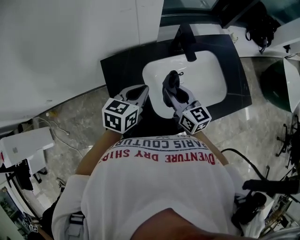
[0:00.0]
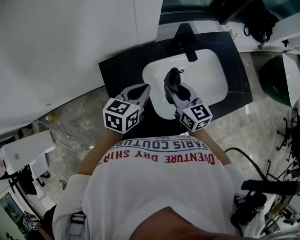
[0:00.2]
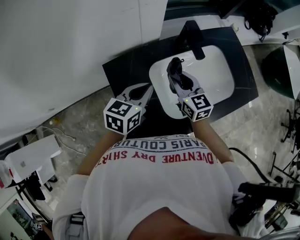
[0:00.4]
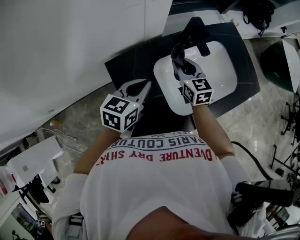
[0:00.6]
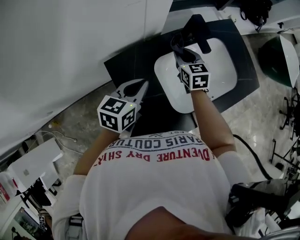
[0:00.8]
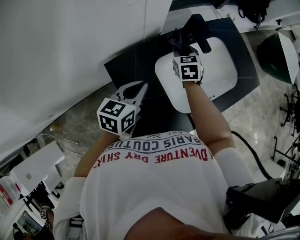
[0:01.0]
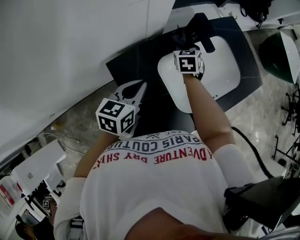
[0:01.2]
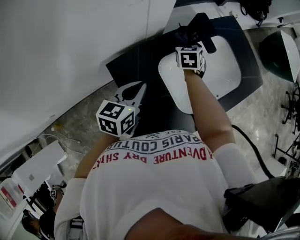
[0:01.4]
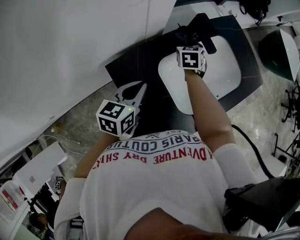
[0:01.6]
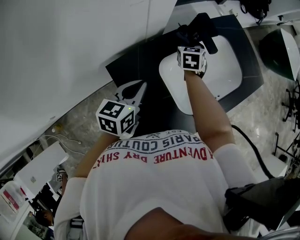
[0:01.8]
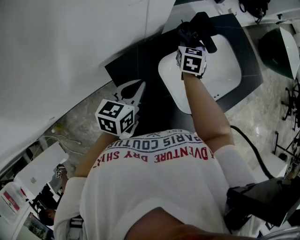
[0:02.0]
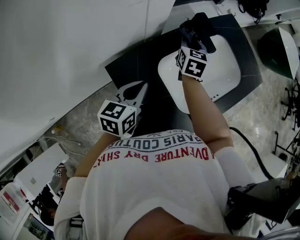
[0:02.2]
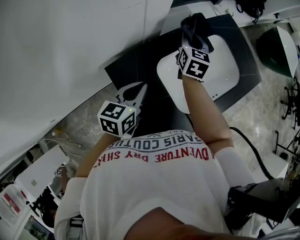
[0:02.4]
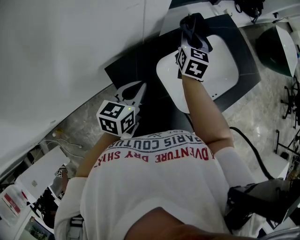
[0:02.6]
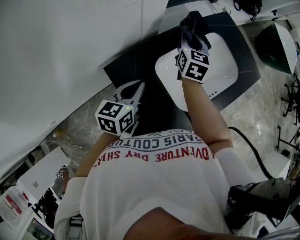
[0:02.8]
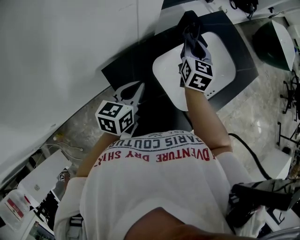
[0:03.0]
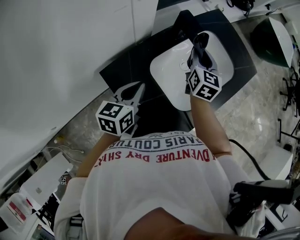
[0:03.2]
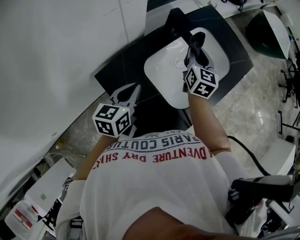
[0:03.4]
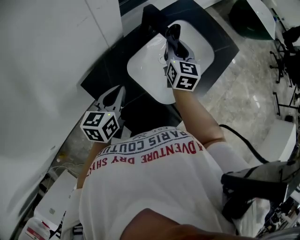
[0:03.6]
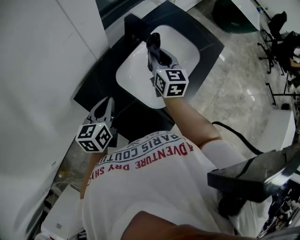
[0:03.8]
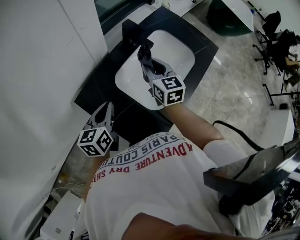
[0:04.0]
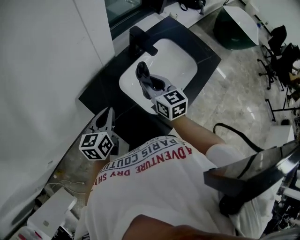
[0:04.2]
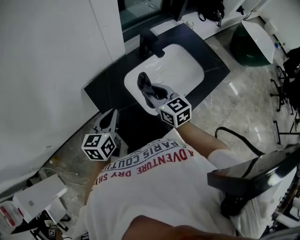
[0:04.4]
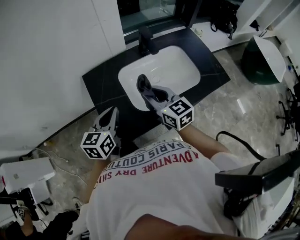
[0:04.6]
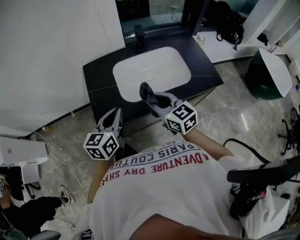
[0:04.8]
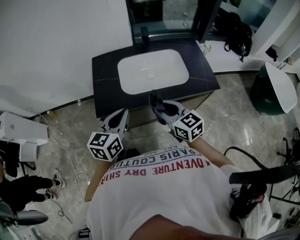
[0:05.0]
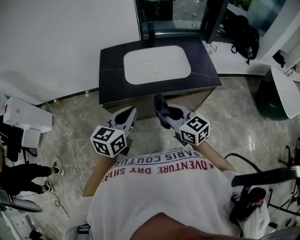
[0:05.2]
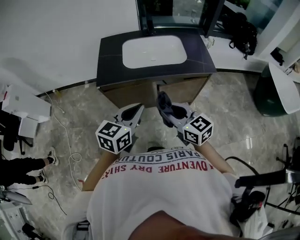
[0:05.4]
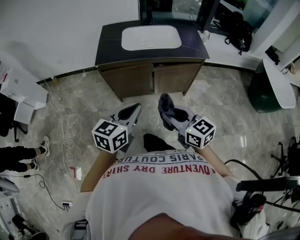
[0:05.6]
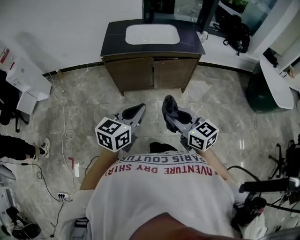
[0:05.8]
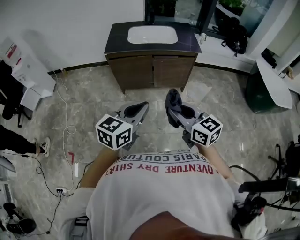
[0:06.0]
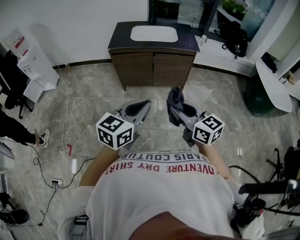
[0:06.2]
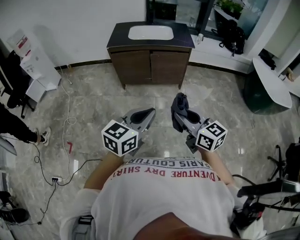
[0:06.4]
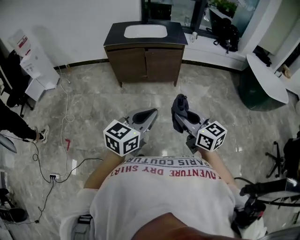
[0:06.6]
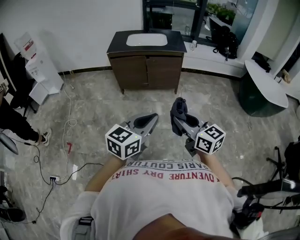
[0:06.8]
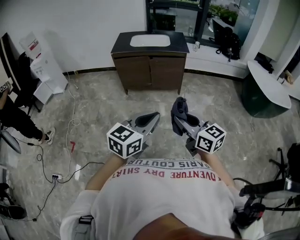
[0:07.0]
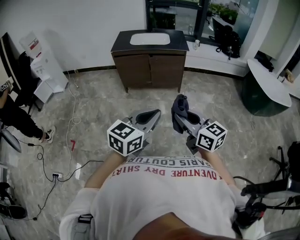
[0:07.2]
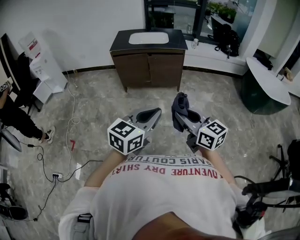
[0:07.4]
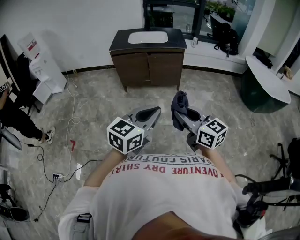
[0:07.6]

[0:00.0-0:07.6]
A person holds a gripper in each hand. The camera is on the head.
0.0 to 1.6 s: The left gripper ends up approximately 10 cm from where it was. Meanwhile the right gripper shifts by roughly 25 cm, and tips its fingers downward by some 30 degrees.
1.6 to 3.0 s: The right gripper is displaced upward by about 10 cm, and turns by some 30 degrees.
3.0 to 4.6 s: The right gripper shifts by some 25 cm, and turns by some 50 degrees. Meanwhile the left gripper ends up some 20 cm from where it was, and changes its angle by about 20 degrees.
4.6 to 6.0 s: The two grippers travel together, backward, about 80 cm. The right gripper rotates approximately 20 degrees.
6.0 to 7.6 s: The two grippers go approximately 35 cm backward and to the right.

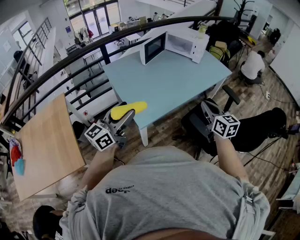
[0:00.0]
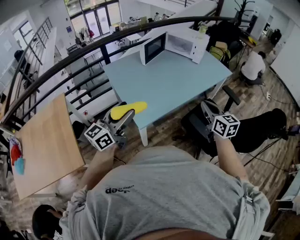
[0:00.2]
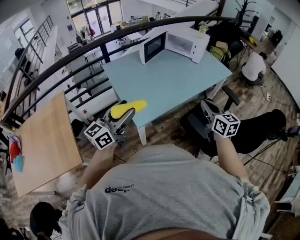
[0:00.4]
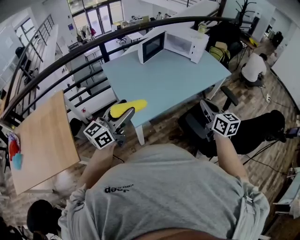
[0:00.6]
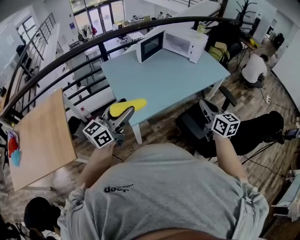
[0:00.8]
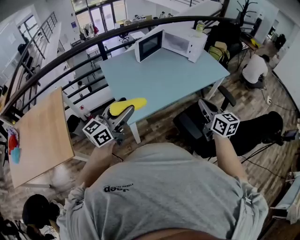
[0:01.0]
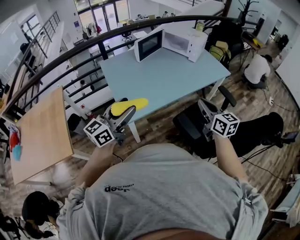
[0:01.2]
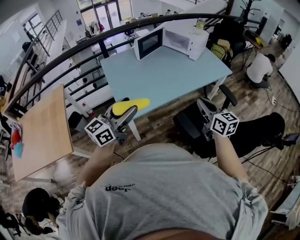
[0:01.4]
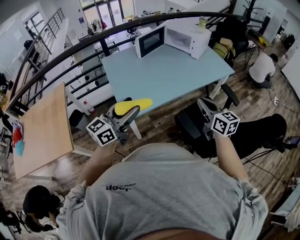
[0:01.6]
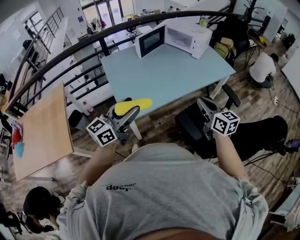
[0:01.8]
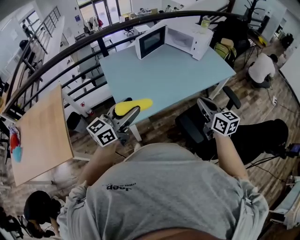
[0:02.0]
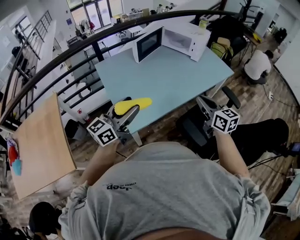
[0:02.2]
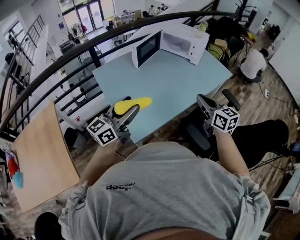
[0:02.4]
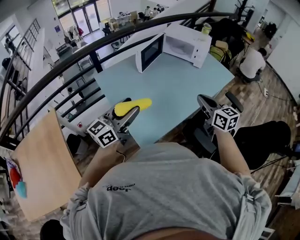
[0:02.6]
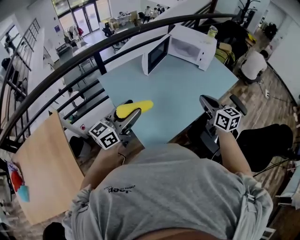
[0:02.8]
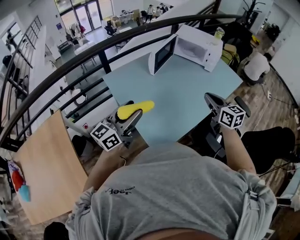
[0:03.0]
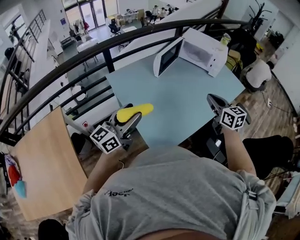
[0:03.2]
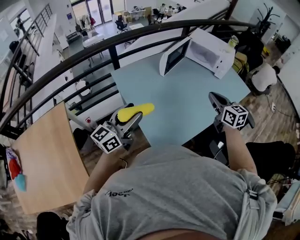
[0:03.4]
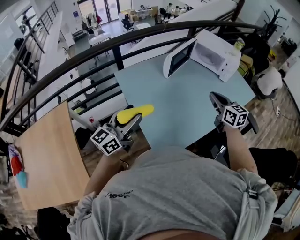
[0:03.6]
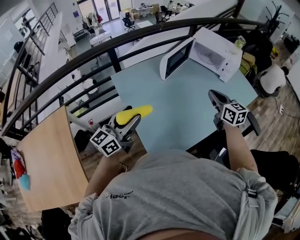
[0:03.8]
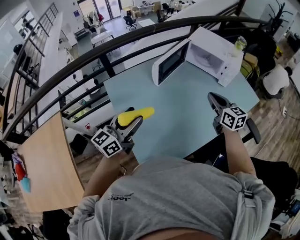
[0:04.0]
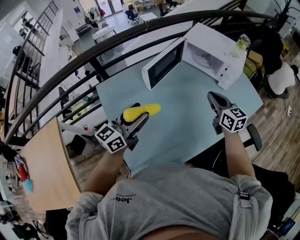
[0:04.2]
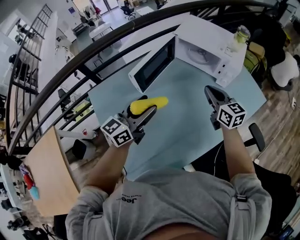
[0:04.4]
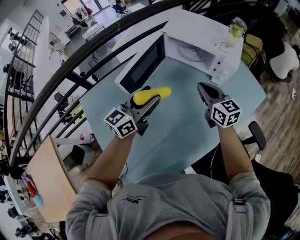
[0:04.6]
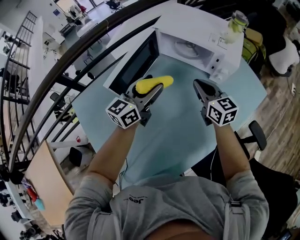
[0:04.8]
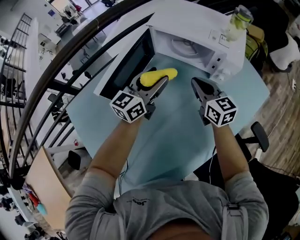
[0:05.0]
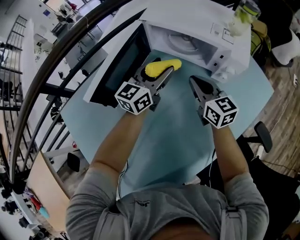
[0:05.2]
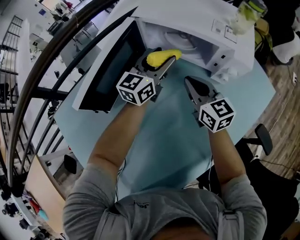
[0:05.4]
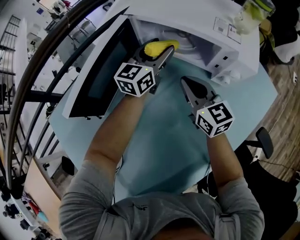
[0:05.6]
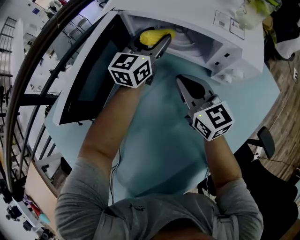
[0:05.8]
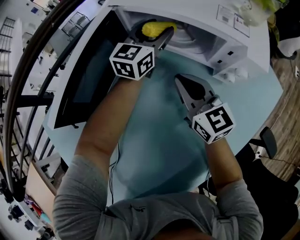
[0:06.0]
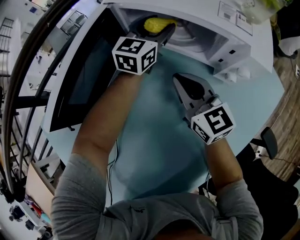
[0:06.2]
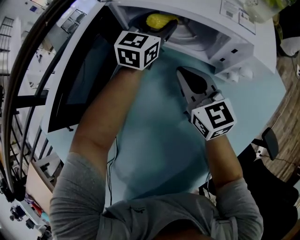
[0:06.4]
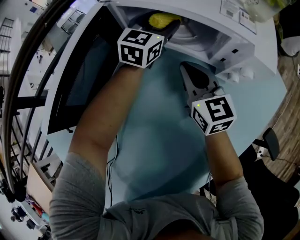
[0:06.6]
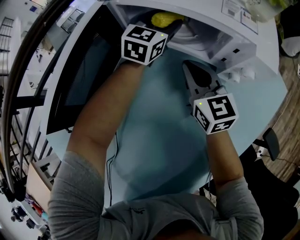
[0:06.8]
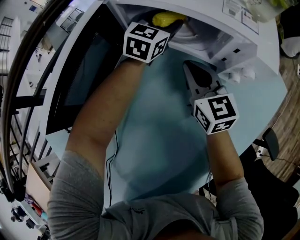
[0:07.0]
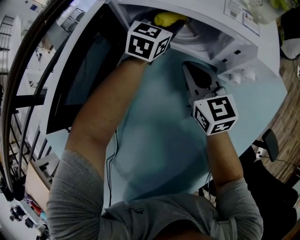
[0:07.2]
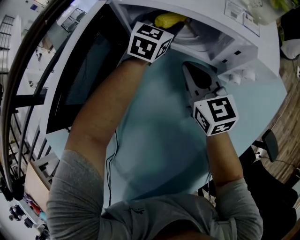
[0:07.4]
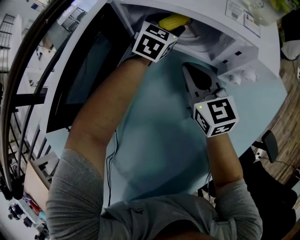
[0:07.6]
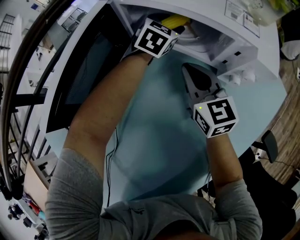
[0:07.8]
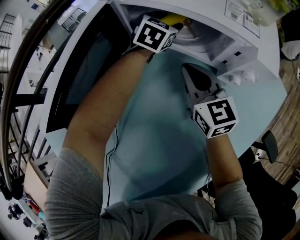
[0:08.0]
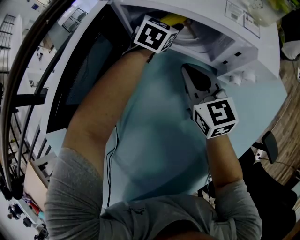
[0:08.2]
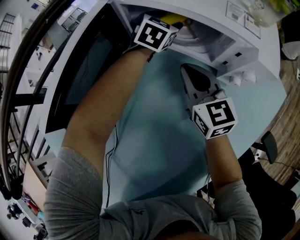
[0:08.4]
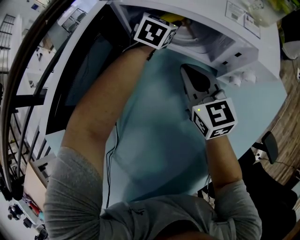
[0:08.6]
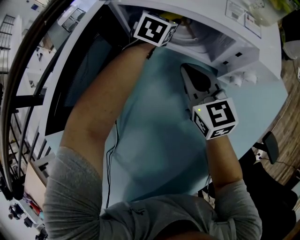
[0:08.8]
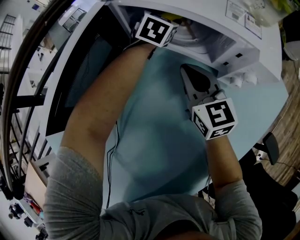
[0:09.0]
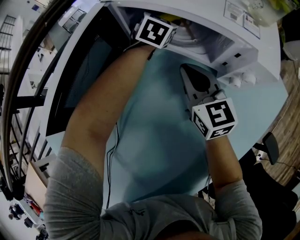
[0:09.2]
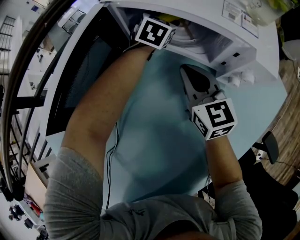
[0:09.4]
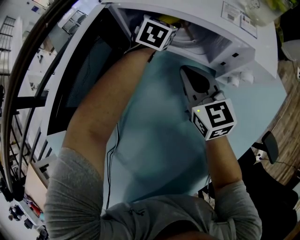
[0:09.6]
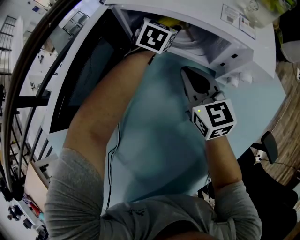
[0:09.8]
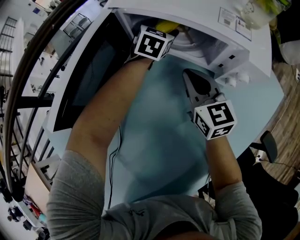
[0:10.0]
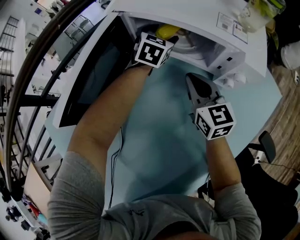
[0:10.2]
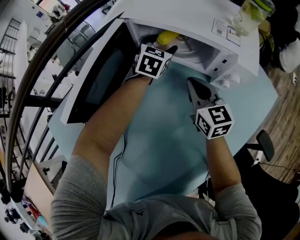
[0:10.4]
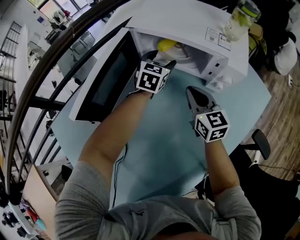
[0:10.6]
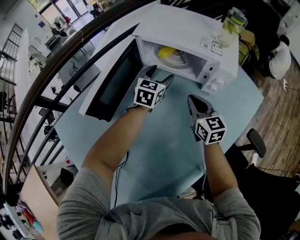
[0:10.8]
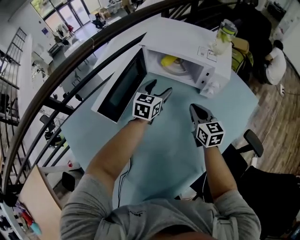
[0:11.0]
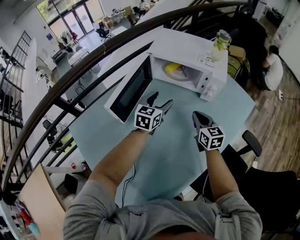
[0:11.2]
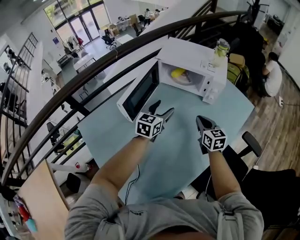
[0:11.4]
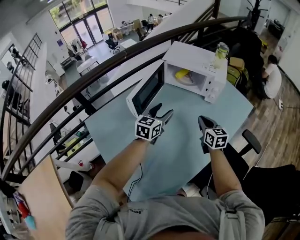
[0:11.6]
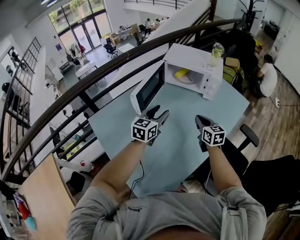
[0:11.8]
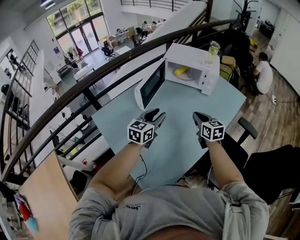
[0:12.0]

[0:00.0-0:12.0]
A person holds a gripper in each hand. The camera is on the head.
0.0 to 1.6 s: The right gripper is displaced to the right by roughly 10 cm, while the left gripper moves to the right, about 15 cm.
1.6 to 3.0 s: The two grippers go about 30 cm to the left and forward.
3.0 to 4.4 s: The right gripper goes approximately 35 cm forward, while the left gripper goes roughly 35 cm forward and to the right.
4.4 to 6.0 s: The left gripper shifts about 50 cm forward, downward and to the right; the right gripper goes roughly 20 cm downward and forward.
6.0 to 7.6 s: The left gripper is displaced downward by approximately 5 cm, and changes its angle by some 30 degrees.
7.6 to 9.0 s: The grippers move only a little.
9.0 to 10.4 s: The left gripper heads backward, covering about 5 cm.
10.4 to 12.0 s: The right gripper goes some 35 cm backward and upward, while the left gripper is displaced backward and upward by roughly 50 cm, rotates some 20 degrees, and closes its fingers.

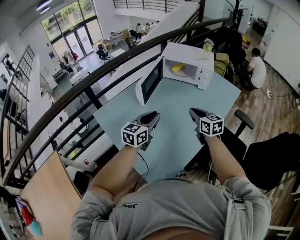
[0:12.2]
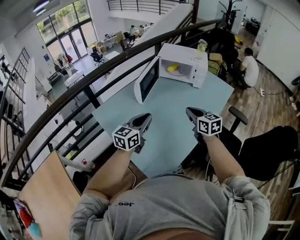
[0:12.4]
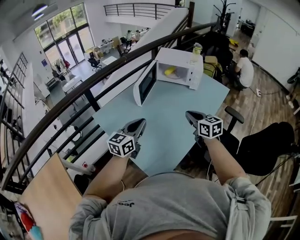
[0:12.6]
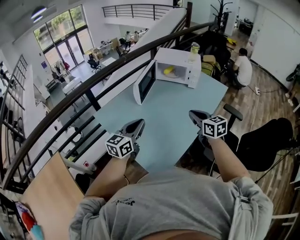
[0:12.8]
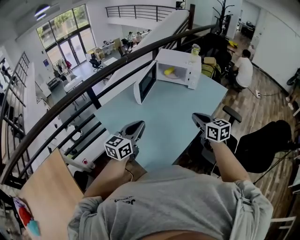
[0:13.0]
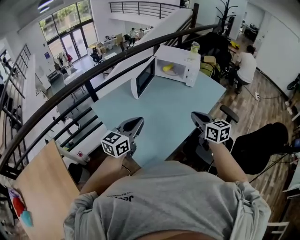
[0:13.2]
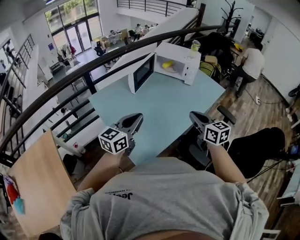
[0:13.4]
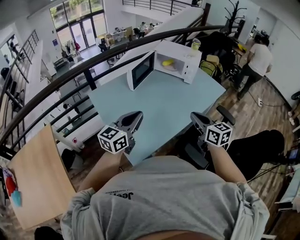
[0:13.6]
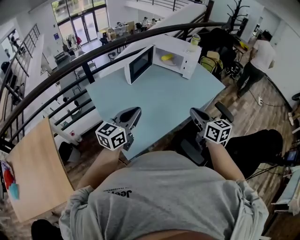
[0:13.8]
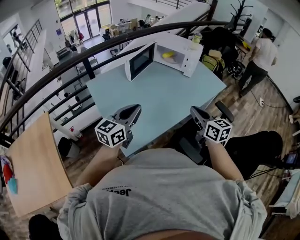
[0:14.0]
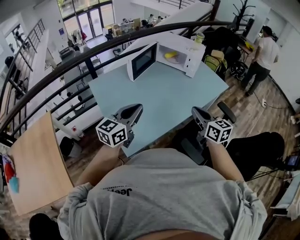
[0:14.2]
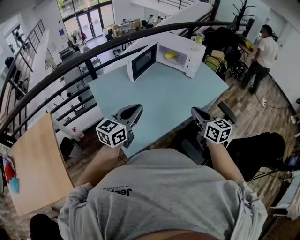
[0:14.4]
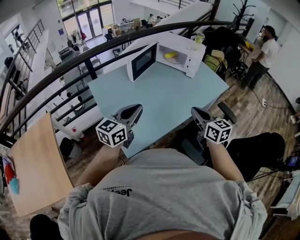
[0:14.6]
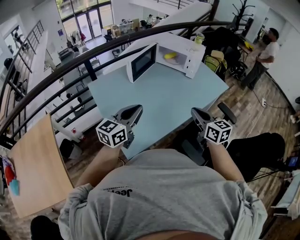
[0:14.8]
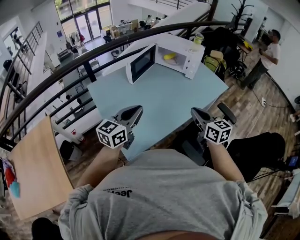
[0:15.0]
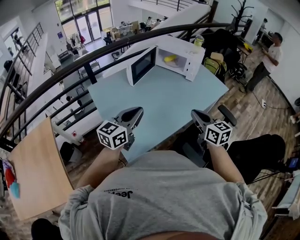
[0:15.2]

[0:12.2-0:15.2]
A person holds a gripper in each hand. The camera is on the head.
12.2 to 13.8 s: The right gripper moves backward, to the right and upward, some 25 cm; the left gripper goes roughly 25 cm backward and upward.
13.8 to 15.2 s: The grippers move only a little.

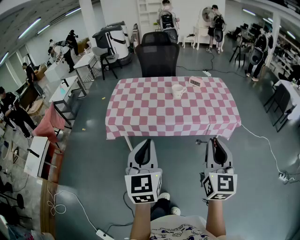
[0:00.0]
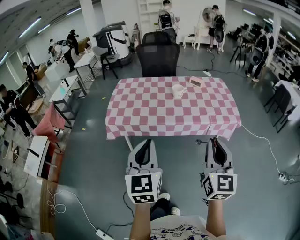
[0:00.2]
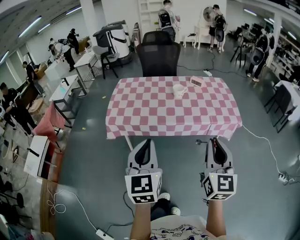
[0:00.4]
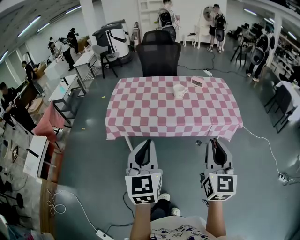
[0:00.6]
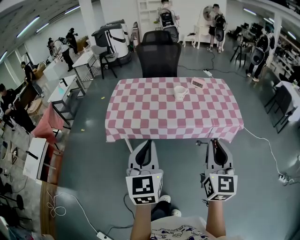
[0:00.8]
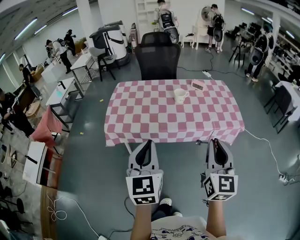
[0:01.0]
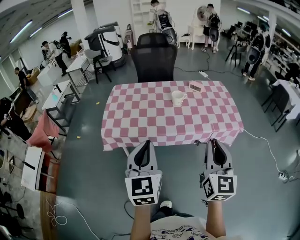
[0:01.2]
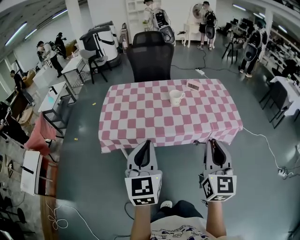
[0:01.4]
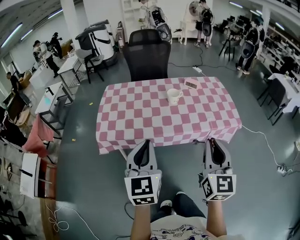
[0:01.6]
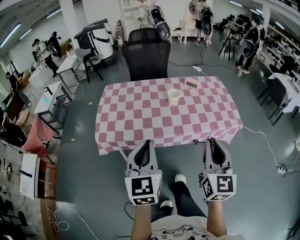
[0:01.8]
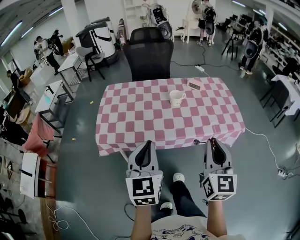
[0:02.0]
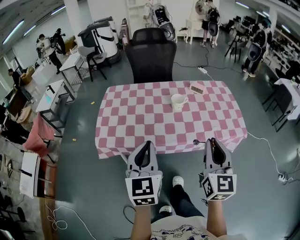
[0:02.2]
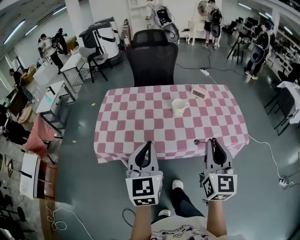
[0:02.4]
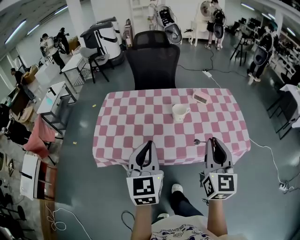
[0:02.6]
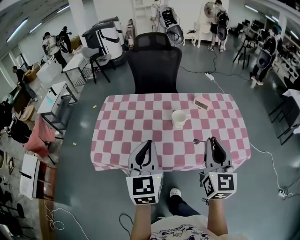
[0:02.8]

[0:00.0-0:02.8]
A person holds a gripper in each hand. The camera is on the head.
0.0 to 1.4 s: Both grippers travel together forward, about 10 cm.
1.4 to 2.8 s: Both grippers move forward, some 25 cm.
